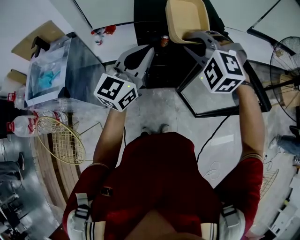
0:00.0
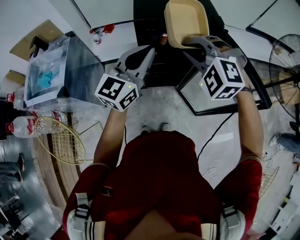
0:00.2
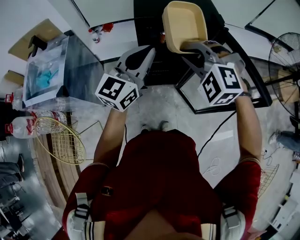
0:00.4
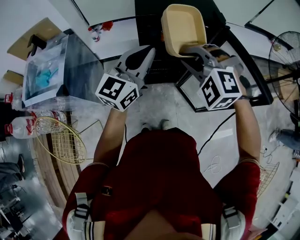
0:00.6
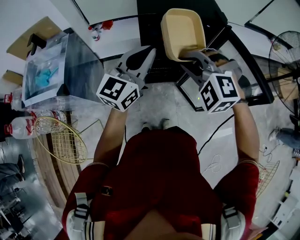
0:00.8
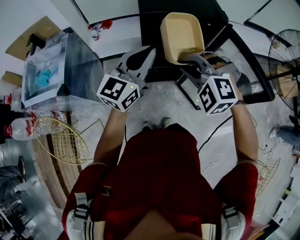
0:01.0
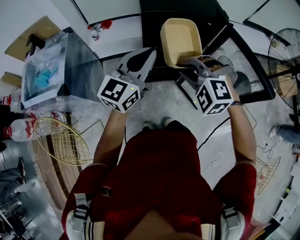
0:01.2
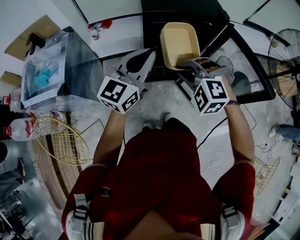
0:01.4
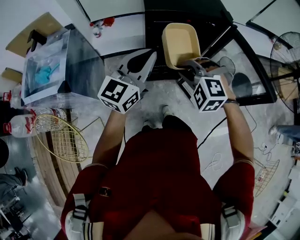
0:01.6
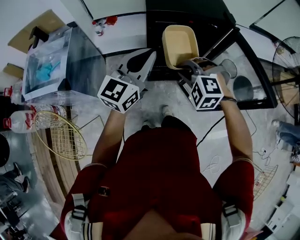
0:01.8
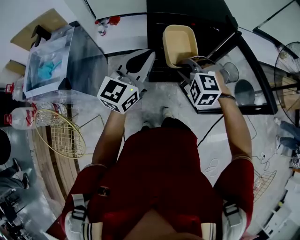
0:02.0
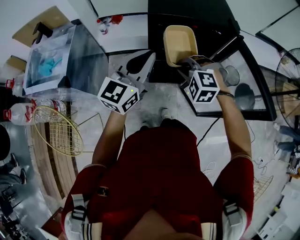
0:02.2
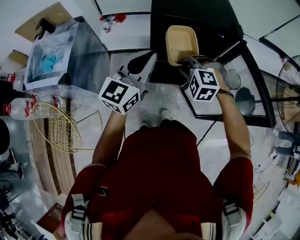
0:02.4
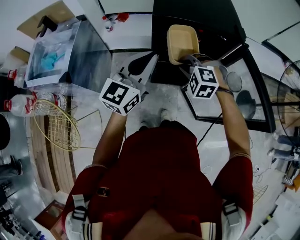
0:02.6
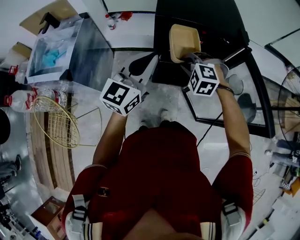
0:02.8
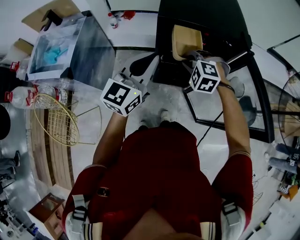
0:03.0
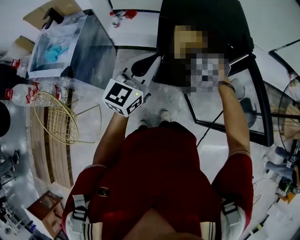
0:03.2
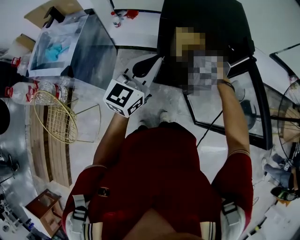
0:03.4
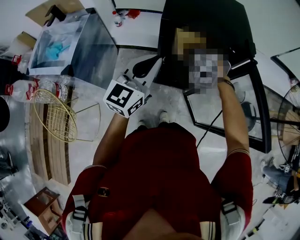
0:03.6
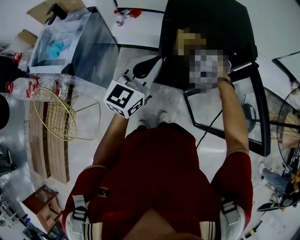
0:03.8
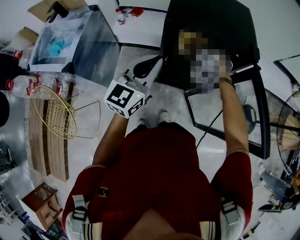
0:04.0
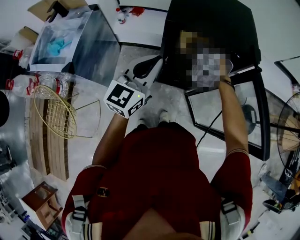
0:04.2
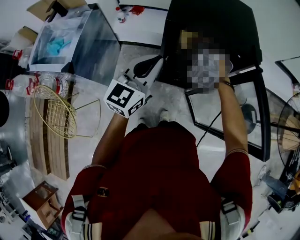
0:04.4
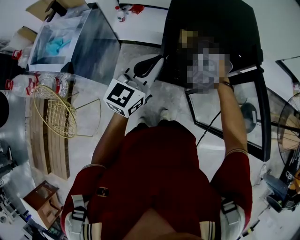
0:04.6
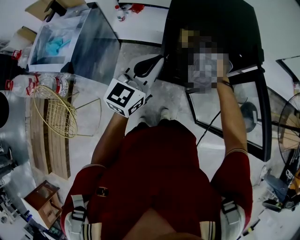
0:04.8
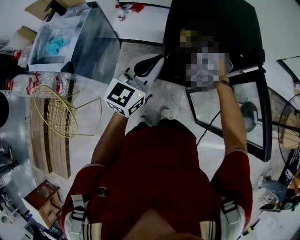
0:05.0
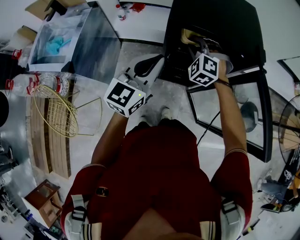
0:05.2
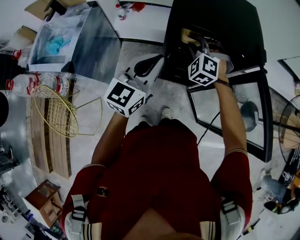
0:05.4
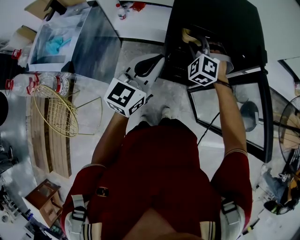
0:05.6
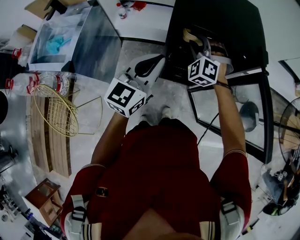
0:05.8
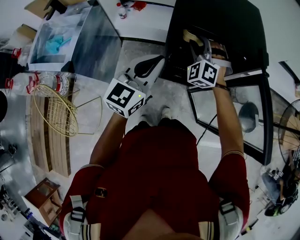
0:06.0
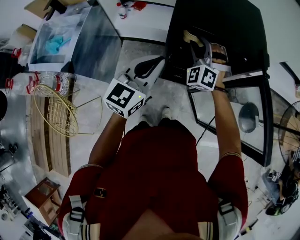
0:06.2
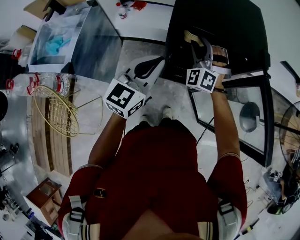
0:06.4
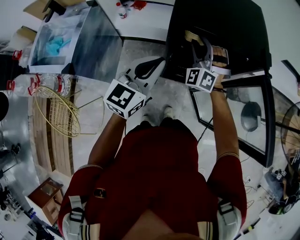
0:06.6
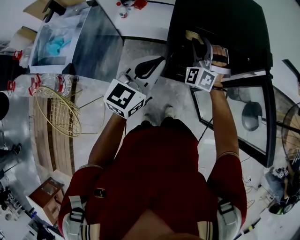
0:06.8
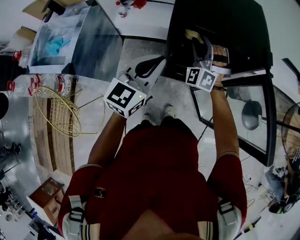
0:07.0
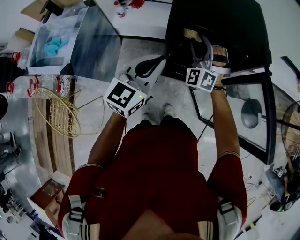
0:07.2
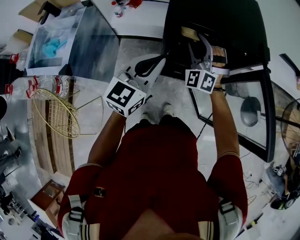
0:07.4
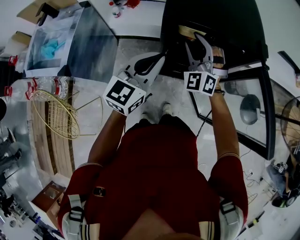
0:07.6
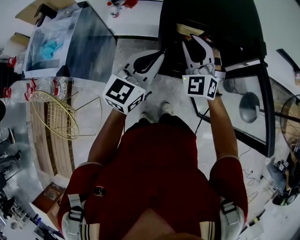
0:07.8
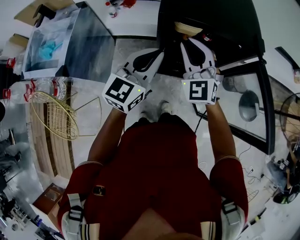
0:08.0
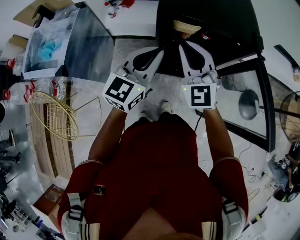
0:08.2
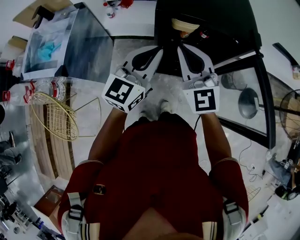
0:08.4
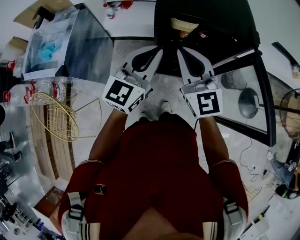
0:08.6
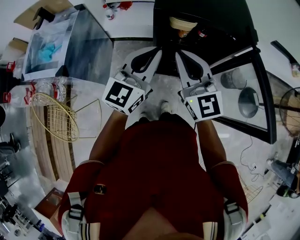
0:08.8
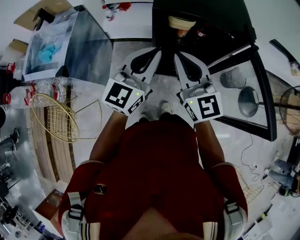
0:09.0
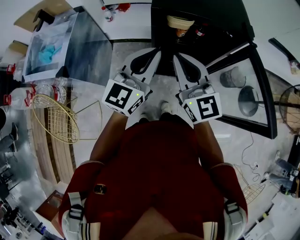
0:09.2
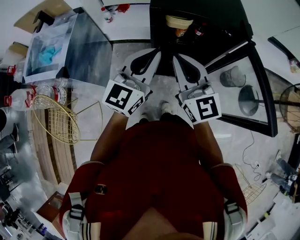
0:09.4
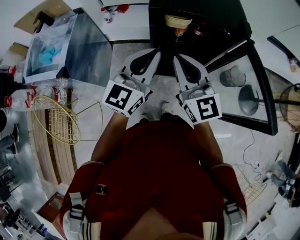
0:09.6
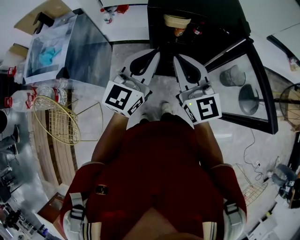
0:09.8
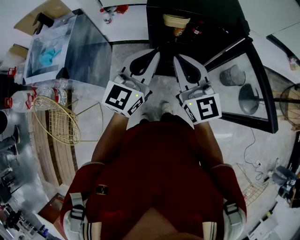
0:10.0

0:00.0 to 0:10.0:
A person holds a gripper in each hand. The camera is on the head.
0:00.0 to 0:01.4: The left gripper moves roughly 5 cm; the right gripper goes about 15 cm downward and backward.
0:01.4 to 0:02.8: The right gripper goes some 15 cm forward and downward.
0:02.8 to 0:04.2: The right gripper shifts about 10 cm forward.
0:04.2 to 0:05.8: The right gripper changes its angle by approximately 20 degrees, and opens up.
0:05.8 to 0:07.2: The grippers make only small movements.
0:07.2 to 0:08.6: The right gripper heads backward and upward, covering about 20 cm, rolls clockwise, seen from behind, by some 60 degrees, and closes its fingers.
0:08.6 to 0:10.0: The right gripper shifts approximately 5 cm backward.

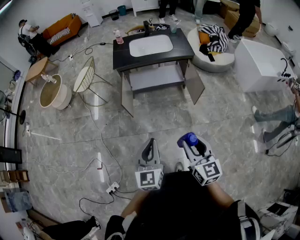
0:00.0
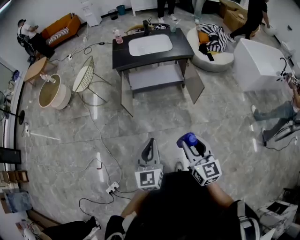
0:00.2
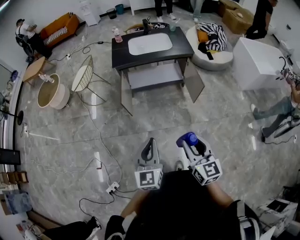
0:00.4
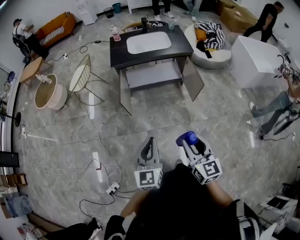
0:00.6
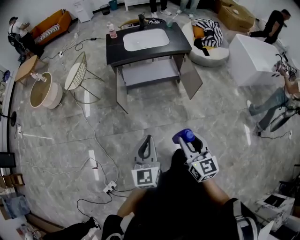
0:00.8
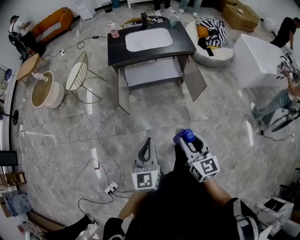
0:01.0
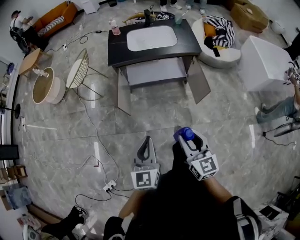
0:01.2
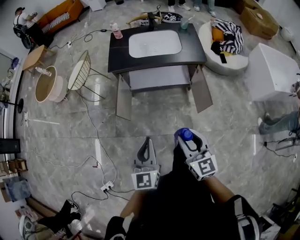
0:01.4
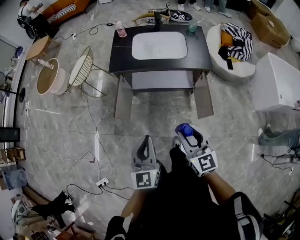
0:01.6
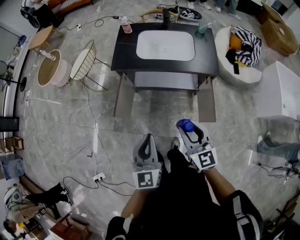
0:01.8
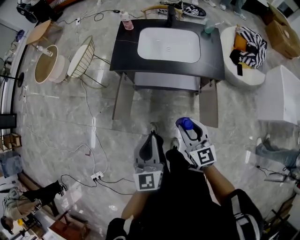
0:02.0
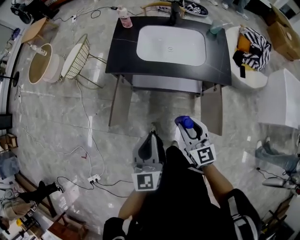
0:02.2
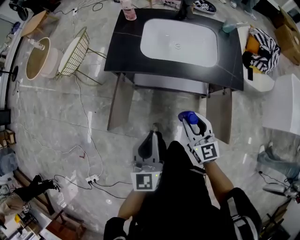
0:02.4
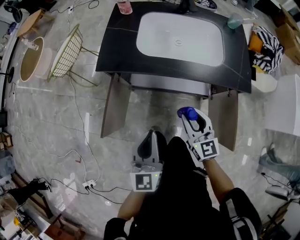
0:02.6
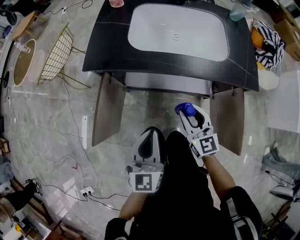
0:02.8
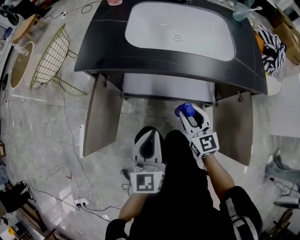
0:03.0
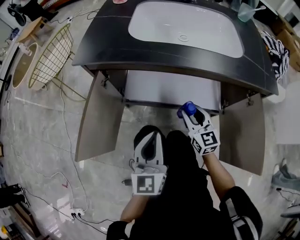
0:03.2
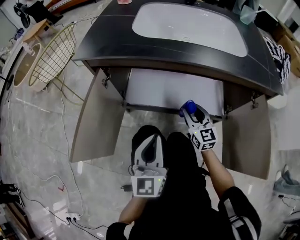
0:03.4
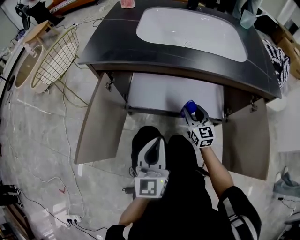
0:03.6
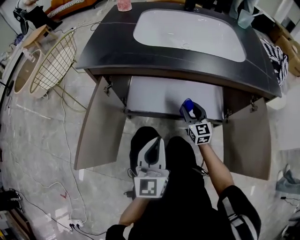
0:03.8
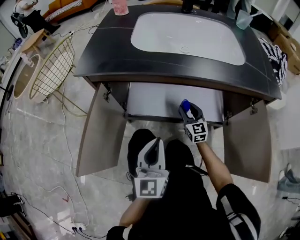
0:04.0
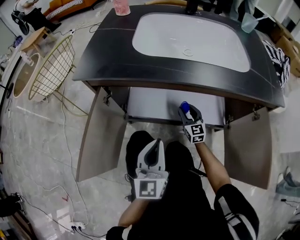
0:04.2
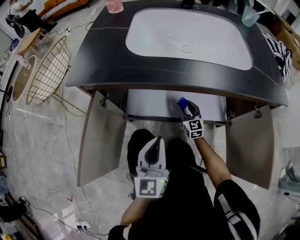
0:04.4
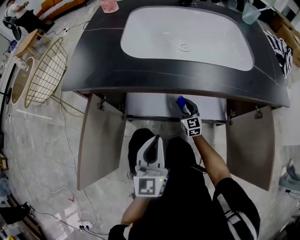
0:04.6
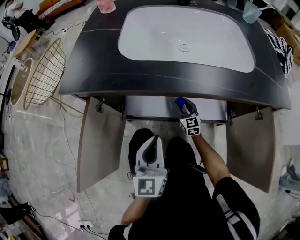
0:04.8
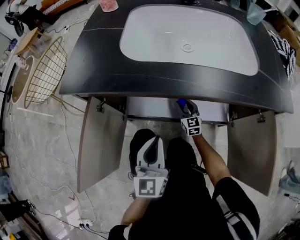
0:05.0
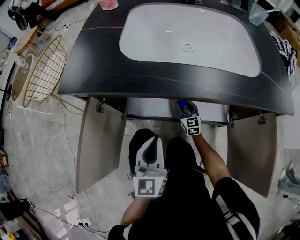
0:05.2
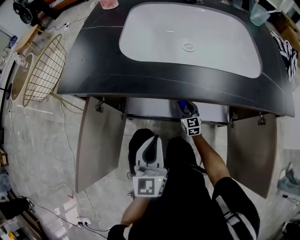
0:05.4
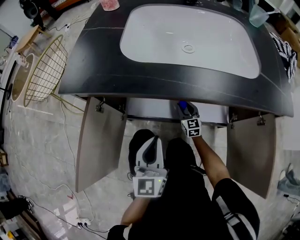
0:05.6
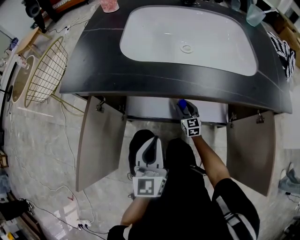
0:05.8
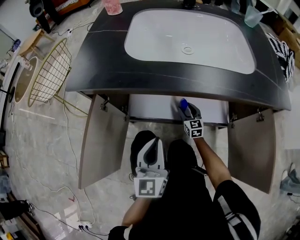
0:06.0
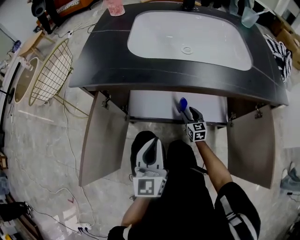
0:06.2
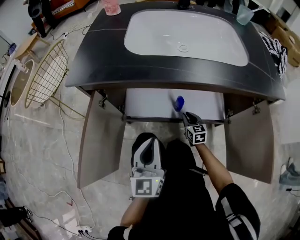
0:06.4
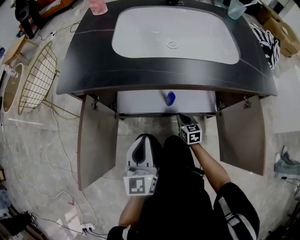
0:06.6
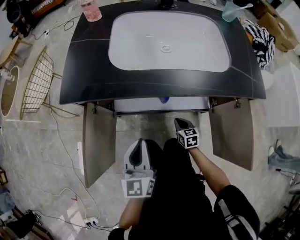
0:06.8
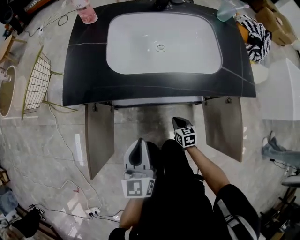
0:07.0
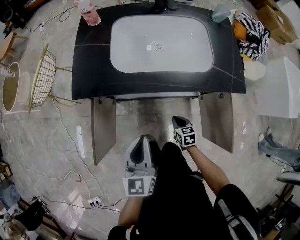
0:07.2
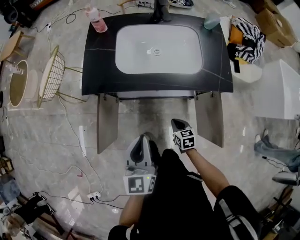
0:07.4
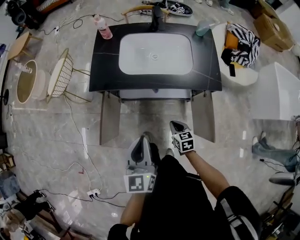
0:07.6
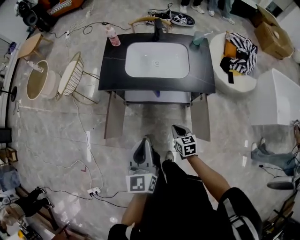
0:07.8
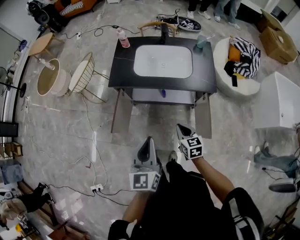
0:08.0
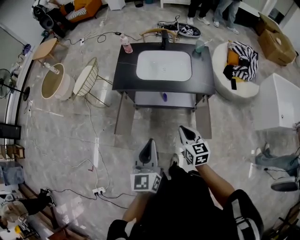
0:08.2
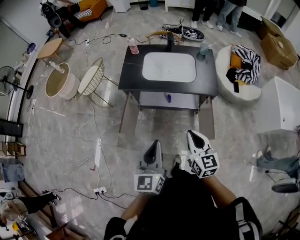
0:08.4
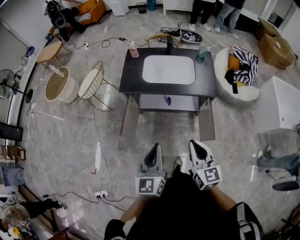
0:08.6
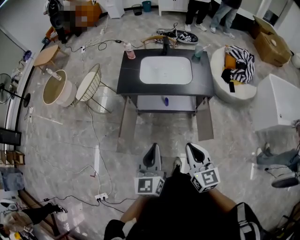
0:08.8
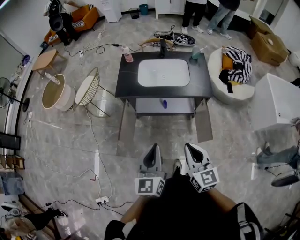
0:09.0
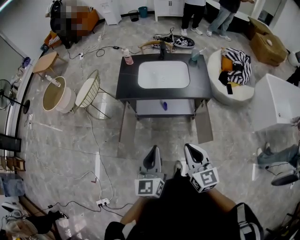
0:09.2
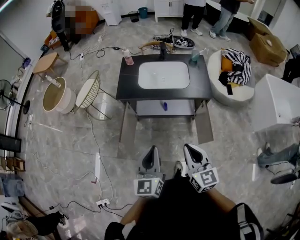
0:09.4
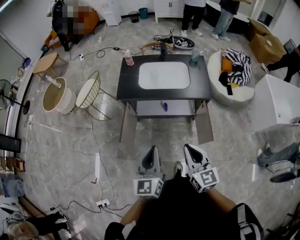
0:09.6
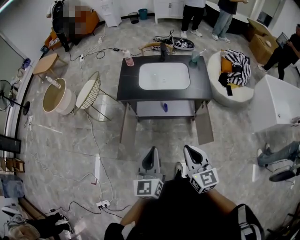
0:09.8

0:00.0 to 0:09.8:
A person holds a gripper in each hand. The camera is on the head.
0:00.0 to 0:01.4: Both grippers move forward, roughly 25 cm.
0:01.4 to 0:02.8: The grippers both shift forward and downward by some 50 cm.
0:02.8 to 0:04.2: The left gripper travels downward by about 20 cm. Meanwhile the right gripper heads downward and forward, covering roughly 35 cm.
0:04.2 to 0:05.6: The right gripper moves downward and forward, some 10 cm. The left gripper moves forward, some 5 cm.
0:05.6 to 0:07.0: The left gripper travels upward by roughly 15 cm, while the right gripper heads backward and upward, covering about 20 cm, turns by approximately 30 degrees, and closes its fingers.
0:07.0 to 0:08.4: Both grippers travel together upward and backward, roughly 60 cm. The right gripper rotates about 30 degrees.
0:08.4 to 0:09.8: The right gripper shifts approximately 5 cm backward.

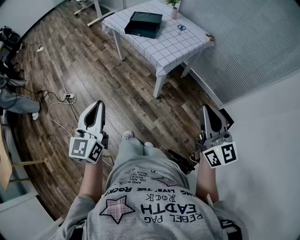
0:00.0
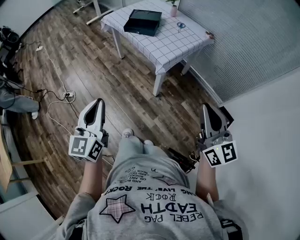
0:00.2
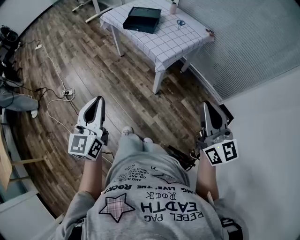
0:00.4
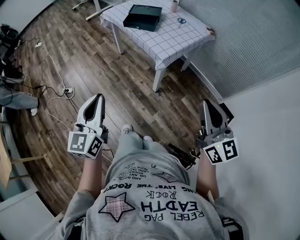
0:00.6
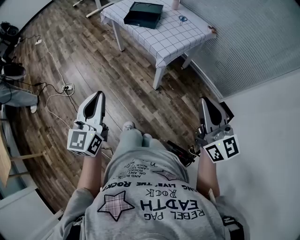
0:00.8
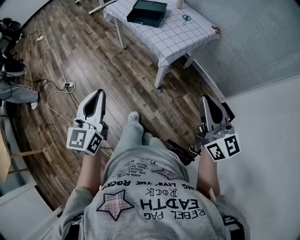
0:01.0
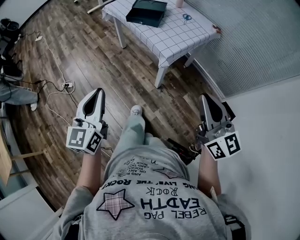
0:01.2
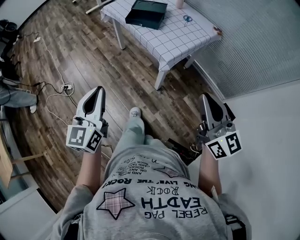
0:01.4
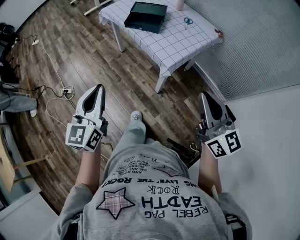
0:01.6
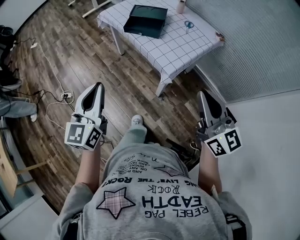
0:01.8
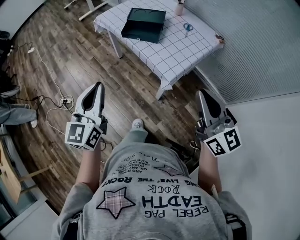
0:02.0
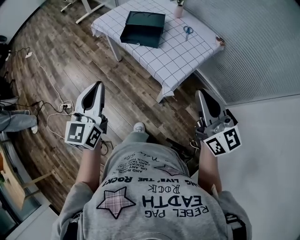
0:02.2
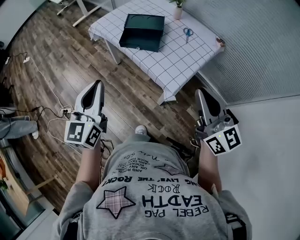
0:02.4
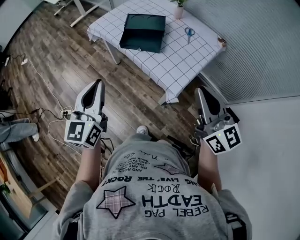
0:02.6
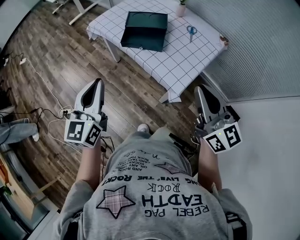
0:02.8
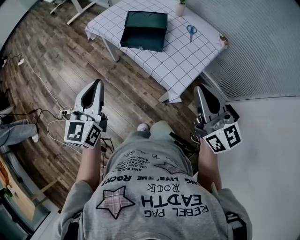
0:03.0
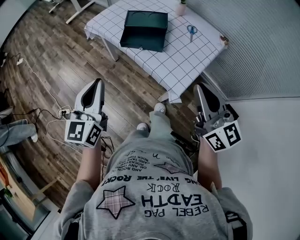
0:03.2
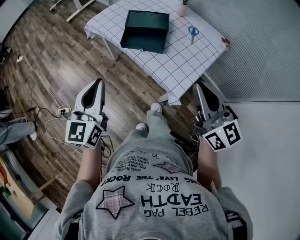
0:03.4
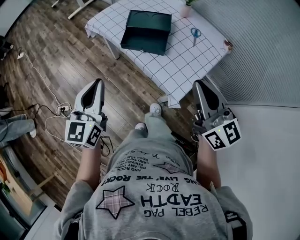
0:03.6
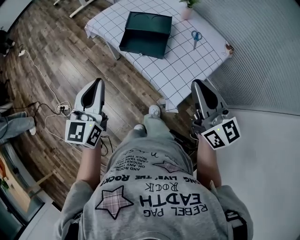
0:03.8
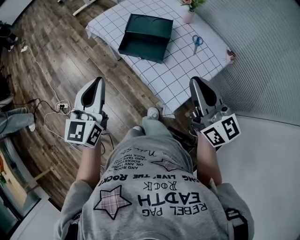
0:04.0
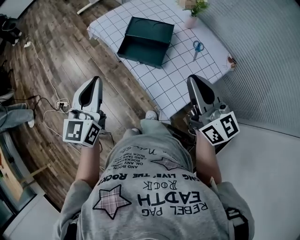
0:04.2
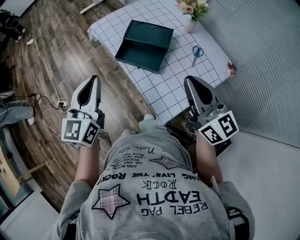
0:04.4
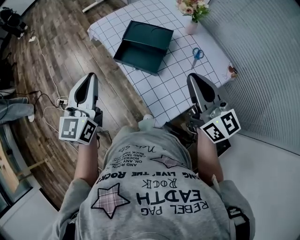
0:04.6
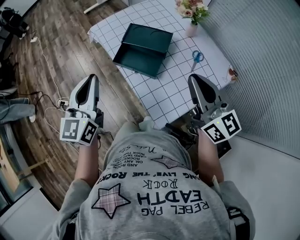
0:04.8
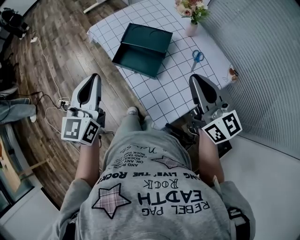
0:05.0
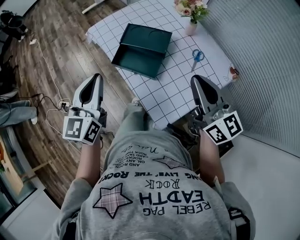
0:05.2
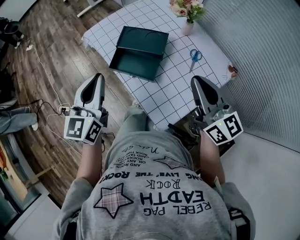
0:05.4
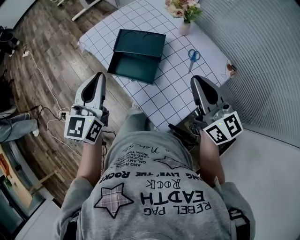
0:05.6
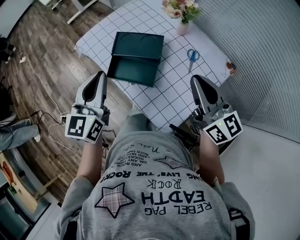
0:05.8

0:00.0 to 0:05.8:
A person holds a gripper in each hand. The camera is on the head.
0:00.0 to 0:01.4: The two grippers go about 10 cm forward.
0:01.4 to 0:02.8: The two grippers go roughly 25 cm forward.
0:02.8 to 0:04.4: The left gripper goes approximately 15 cm forward and to the right; the right gripper moves forward, roughly 20 cm.
0:04.4 to 0:05.8: The two grippers go some 10 cm forward and to the right.
